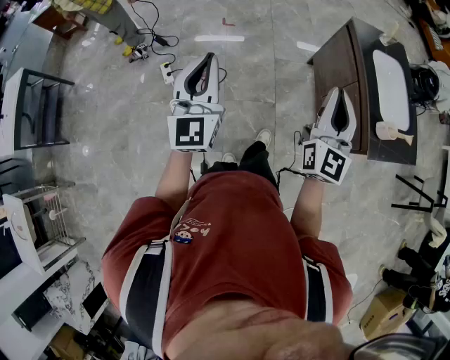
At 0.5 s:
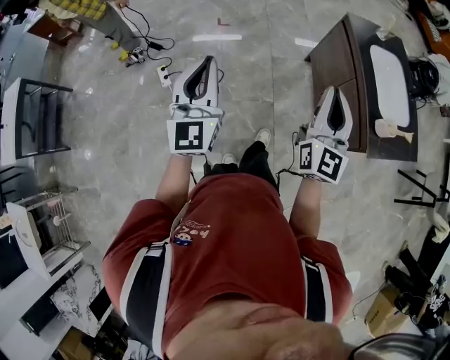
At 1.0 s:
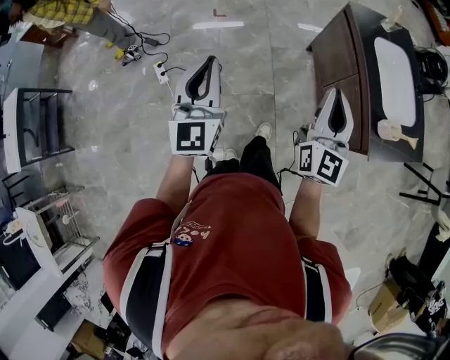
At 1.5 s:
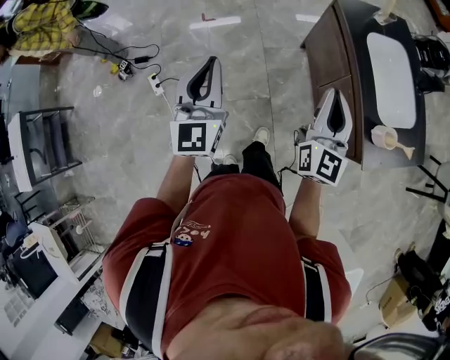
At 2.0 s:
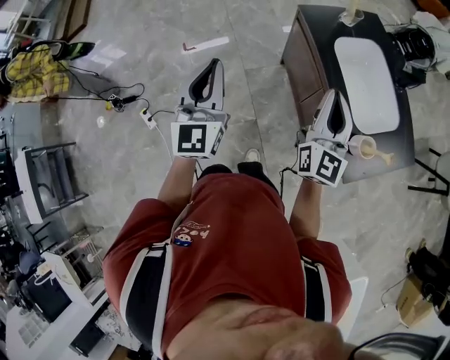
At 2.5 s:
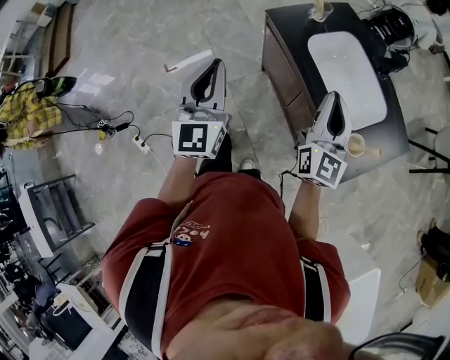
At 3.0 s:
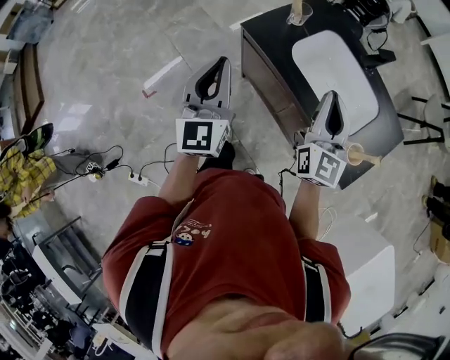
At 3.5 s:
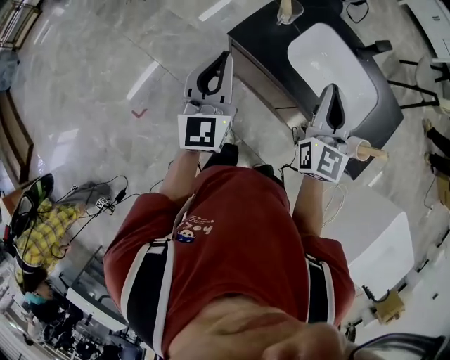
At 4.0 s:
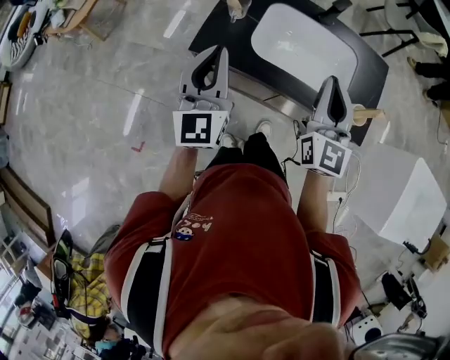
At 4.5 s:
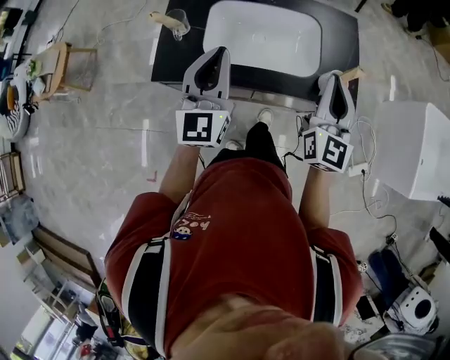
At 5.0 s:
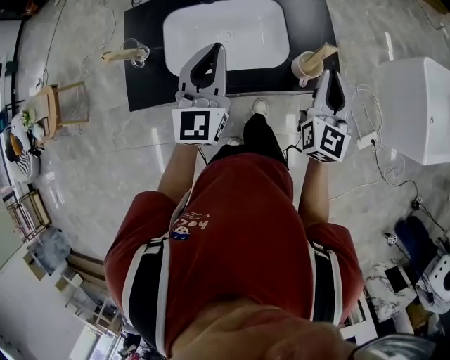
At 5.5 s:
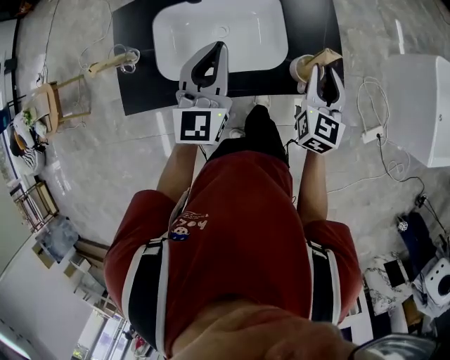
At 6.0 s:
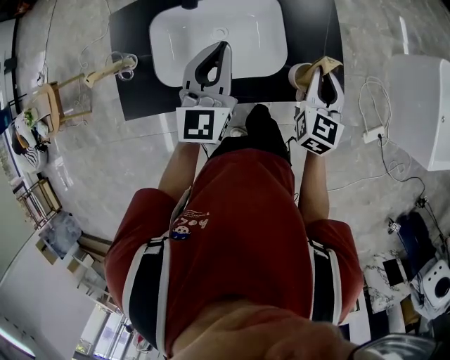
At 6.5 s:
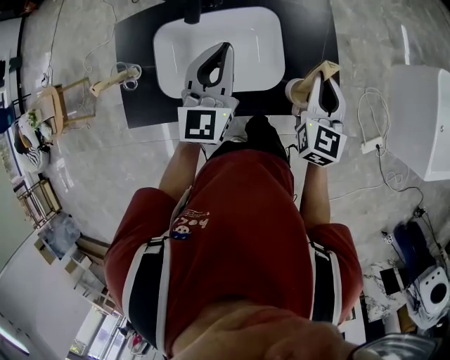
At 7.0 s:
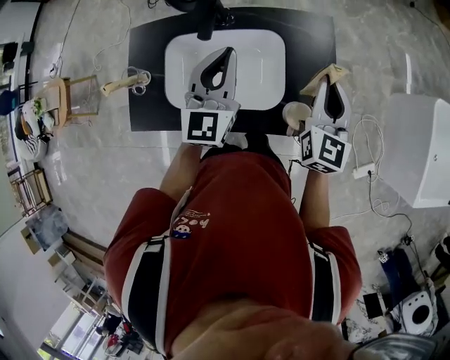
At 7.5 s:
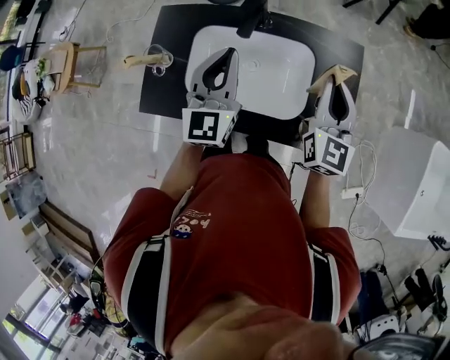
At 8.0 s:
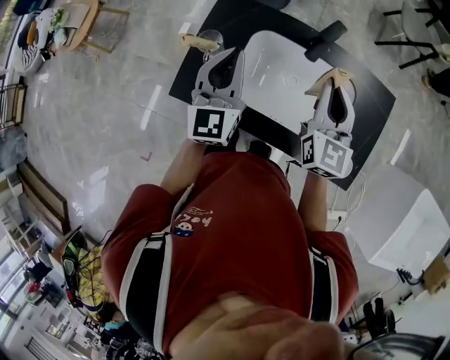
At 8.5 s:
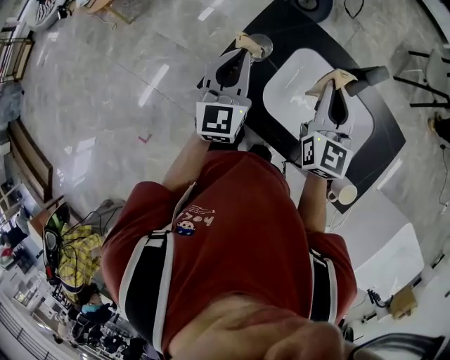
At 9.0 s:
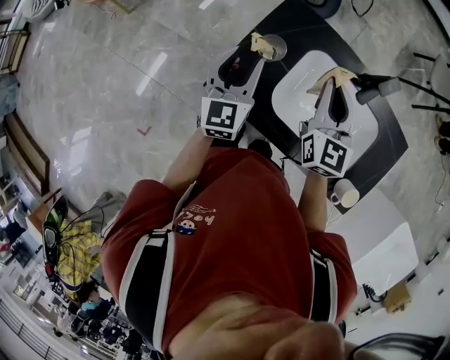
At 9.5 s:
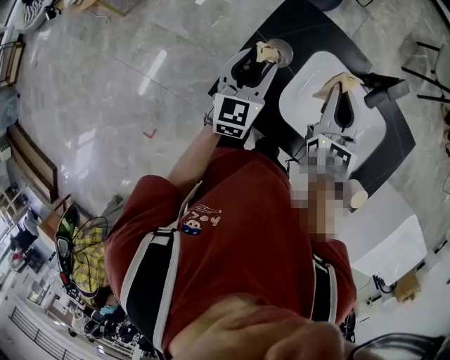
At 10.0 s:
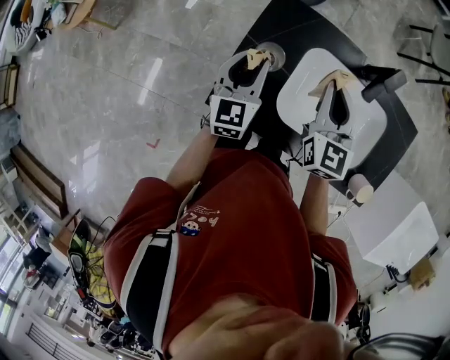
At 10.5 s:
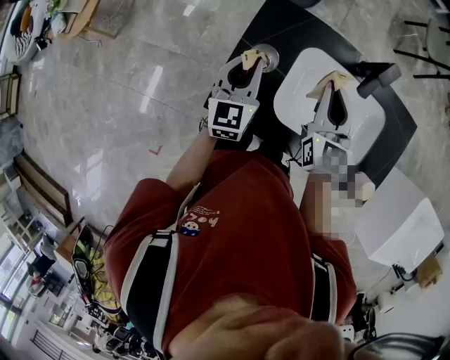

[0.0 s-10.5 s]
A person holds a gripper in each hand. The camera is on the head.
0.0 to 2.0 s: Both grippers move forward and to the right, roughly 35 cm.
2.0 to 4.0 s: The right gripper changes place by some 15 cm, and changes its angle by roughly 50 degrees. The left gripper moves some 35 cm, and swivels approximately 50 degrees.
4.0 to 6.5 s: The left gripper moves some 40 cm, and changes its angle by approximately 30 degrees; the right gripper changes place by some 35 cm, turns by approximately 40 degrees, and opens, then closes again.
6.5 to 8.5 s: The right gripper moves approximately 40 cm, and swivels roughly 40 degrees; the left gripper shifts by about 35 cm, and rotates some 40 degrees.
8.5 to 10.5 s: The left gripper travels downward by about 10 cm, and opens and closes again. The right gripper heads downward, covering about 5 cm.

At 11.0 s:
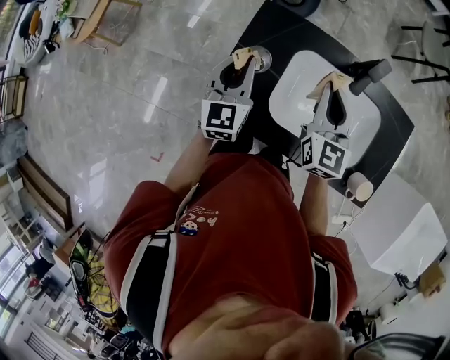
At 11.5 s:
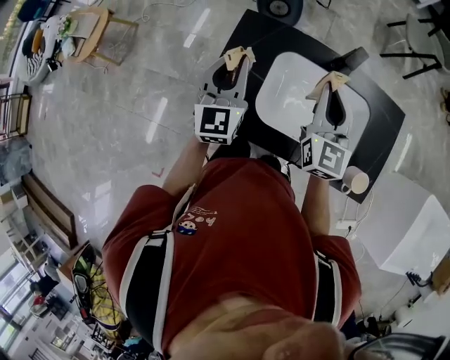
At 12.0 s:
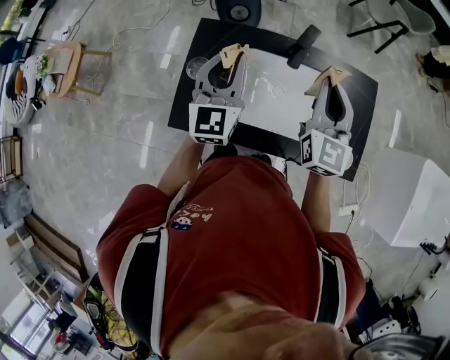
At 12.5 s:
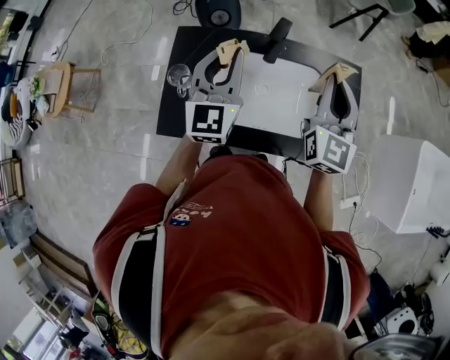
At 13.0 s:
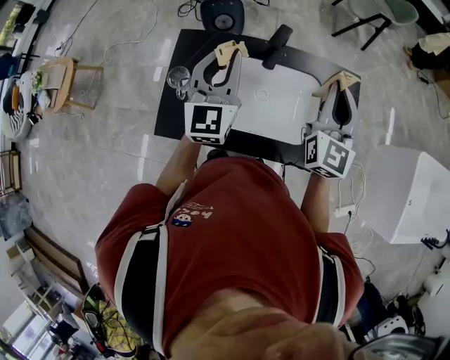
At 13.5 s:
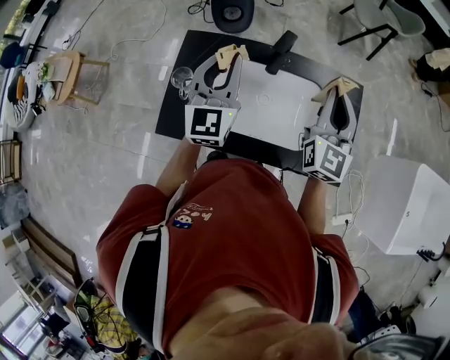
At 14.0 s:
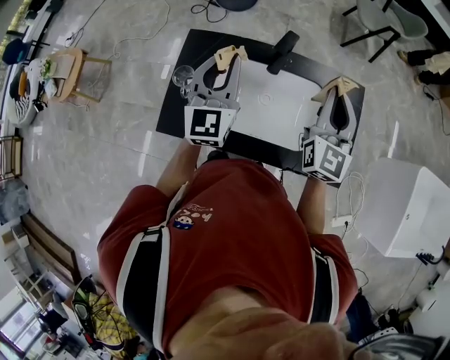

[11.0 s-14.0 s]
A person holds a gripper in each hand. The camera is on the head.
11.0 to 12.5 s: Both grippers move to the right and upward, roughly 25 cm. The left gripper swivels about 20 degrees. Meanwhile the right gripper turns by some 20 degrees.
12.5 to 14.0 s: There are only small adjustments of the grippers.

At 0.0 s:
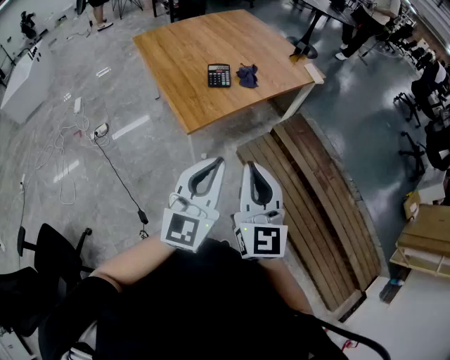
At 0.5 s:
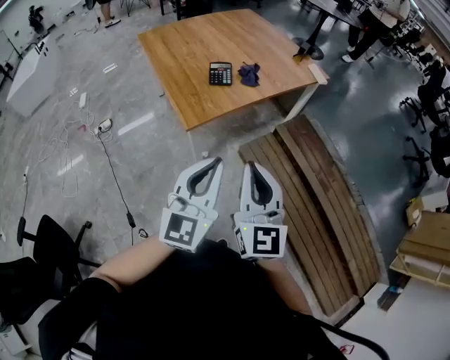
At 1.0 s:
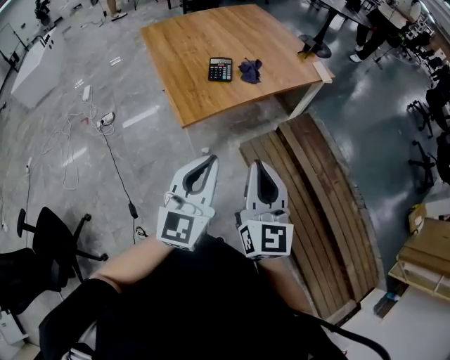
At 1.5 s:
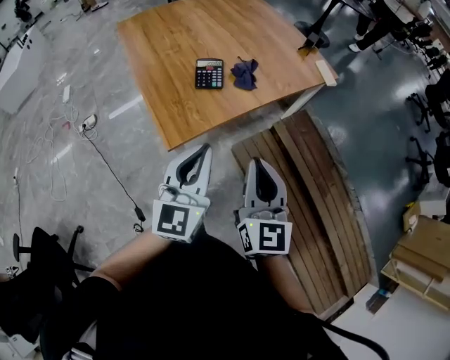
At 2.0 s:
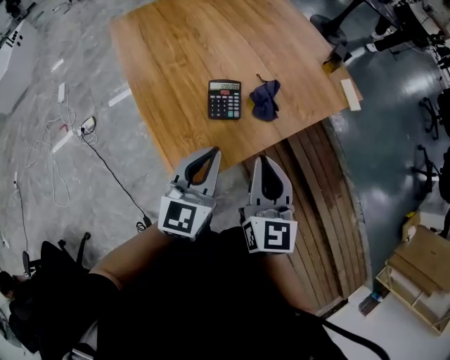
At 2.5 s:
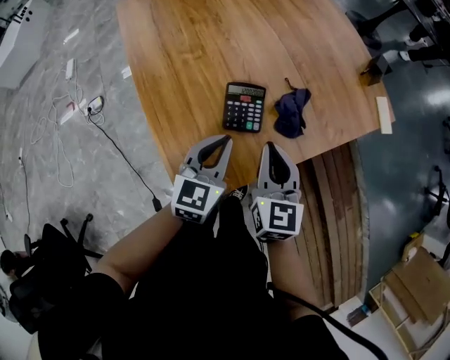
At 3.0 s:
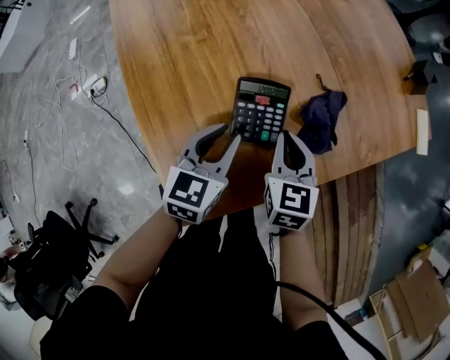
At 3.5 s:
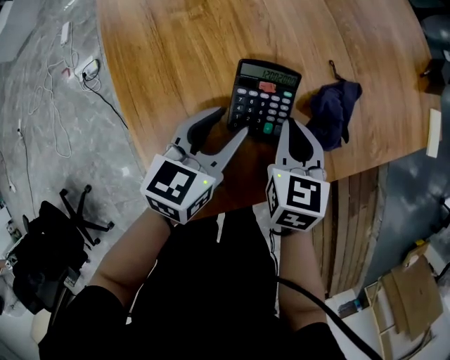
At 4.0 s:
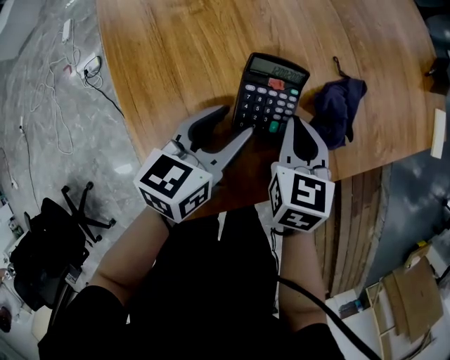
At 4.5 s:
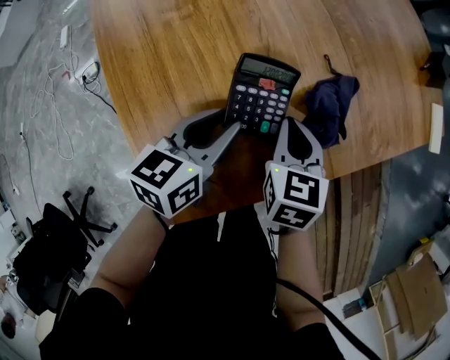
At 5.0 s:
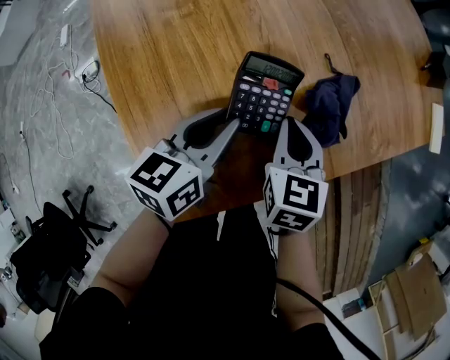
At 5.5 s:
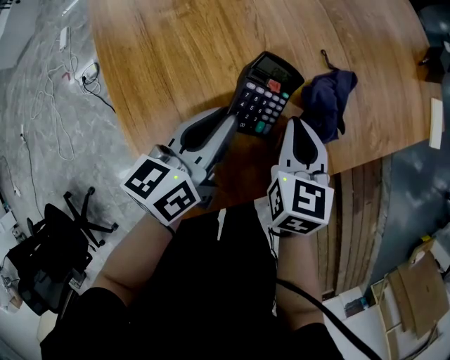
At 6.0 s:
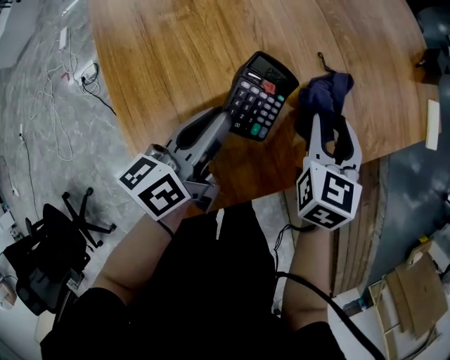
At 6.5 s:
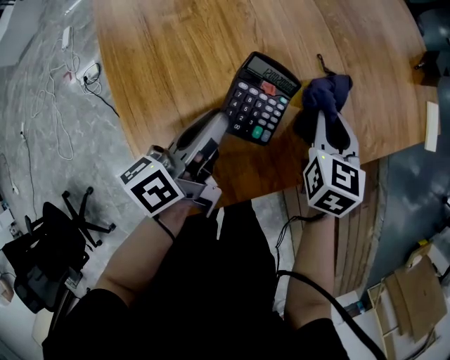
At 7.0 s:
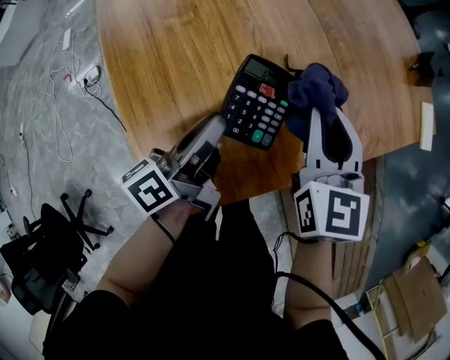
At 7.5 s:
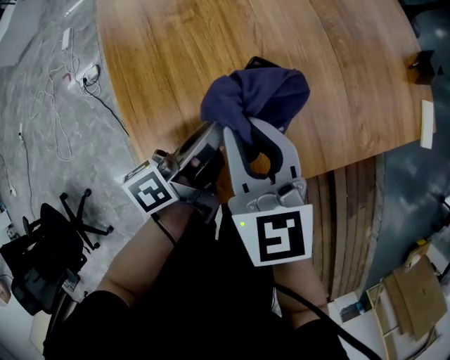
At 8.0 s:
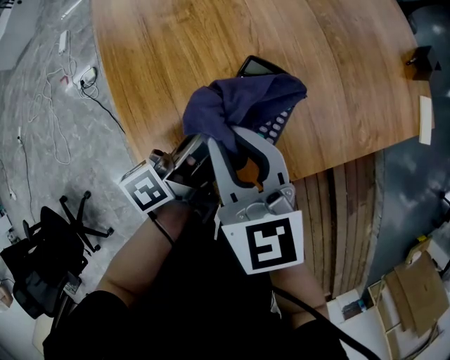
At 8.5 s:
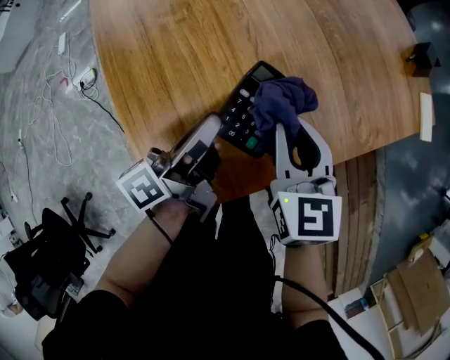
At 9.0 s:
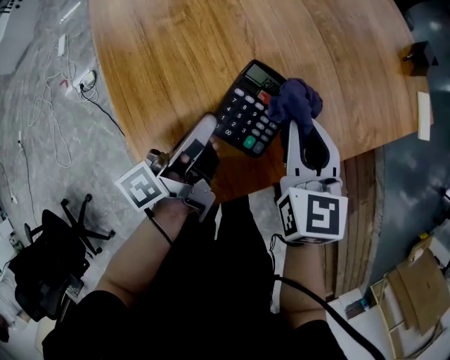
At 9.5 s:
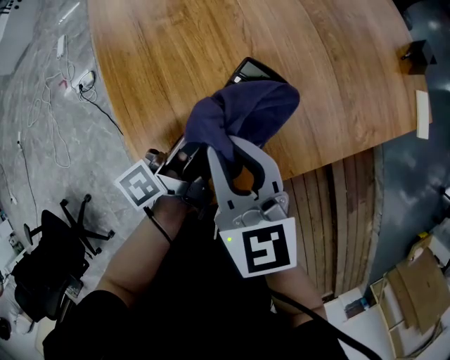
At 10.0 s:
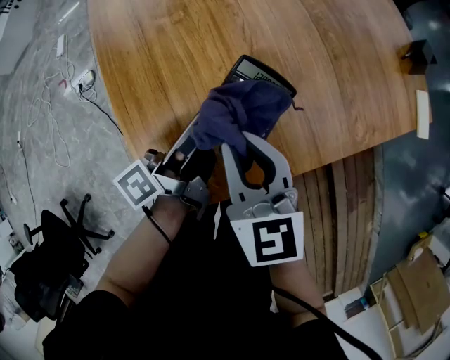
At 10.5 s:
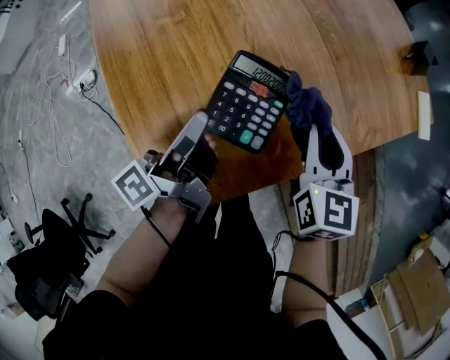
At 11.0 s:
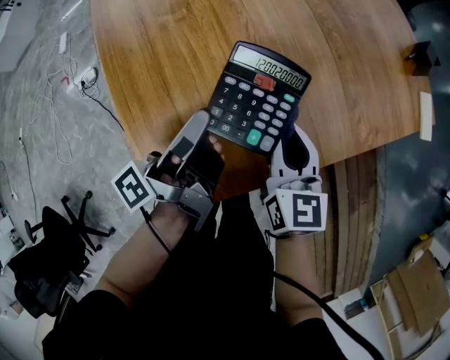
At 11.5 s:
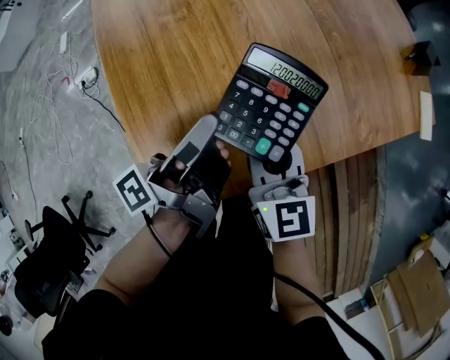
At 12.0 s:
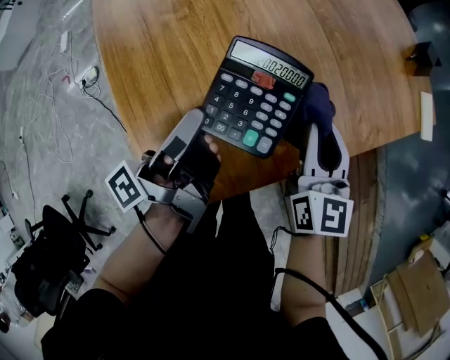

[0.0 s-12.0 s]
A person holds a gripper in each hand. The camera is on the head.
0.0 to 2.0 s: The two grippers travel together, forward, roughly 40 cm.
2.0 to 4.0 s: Both grippers travel together downward and forward, about 35 cm. The left gripper rotates some 30 degrees, and opens; the right gripper tilts its fingers approximately 30 degrees downward.
4.0 to 6.0 s: The left gripper changes its angle by about 30 degrees, and closes its fingers. Meanwhile the right gripper travels to the right by approximately 10 cm, and opens its fingers.
6.0 to 8.0 s: The left gripper changes its angle by roughly 30 degrees. Meanwhile the right gripper moves to the left, upward and backward, roughly 25 cm, and rotates approximately 40 degrees.
8.0 to 10.0 s: The right gripper goes to the right and returns, approximately 15 cm each way.
10.0 to 12.0 s: The right gripper moves left and right over some 15 cm, changing direction 2 times, and changes its angle by some 20 degrees.

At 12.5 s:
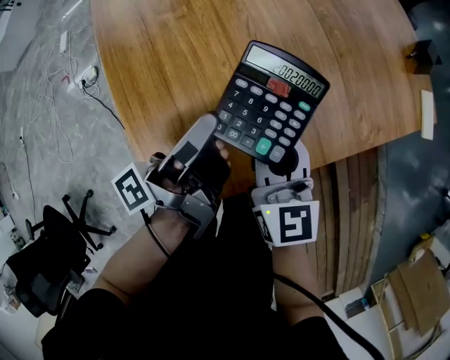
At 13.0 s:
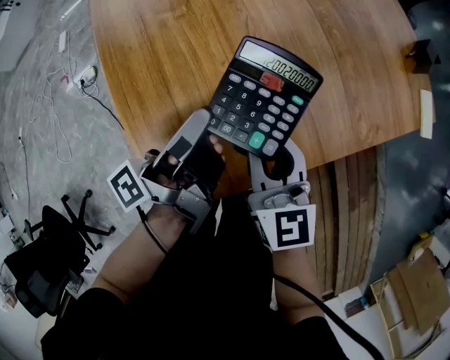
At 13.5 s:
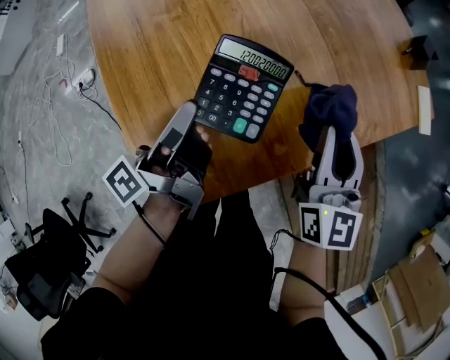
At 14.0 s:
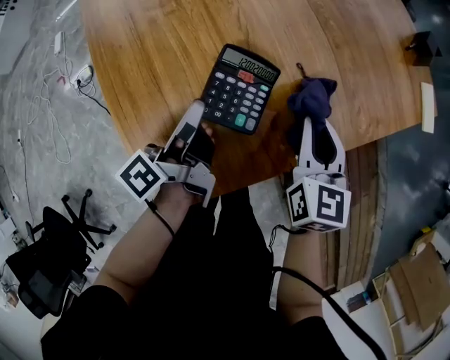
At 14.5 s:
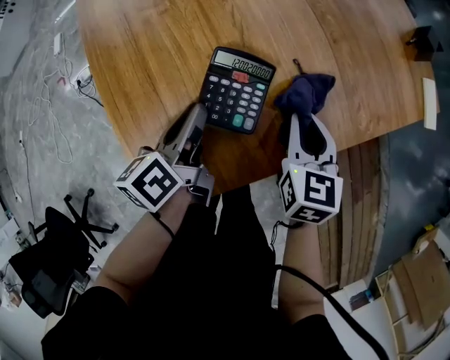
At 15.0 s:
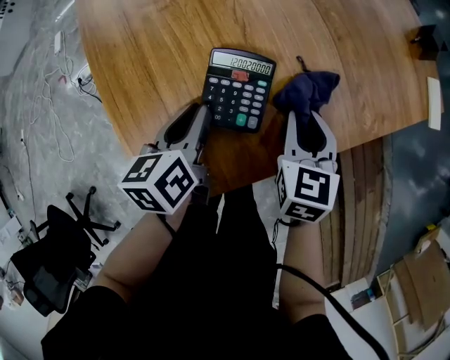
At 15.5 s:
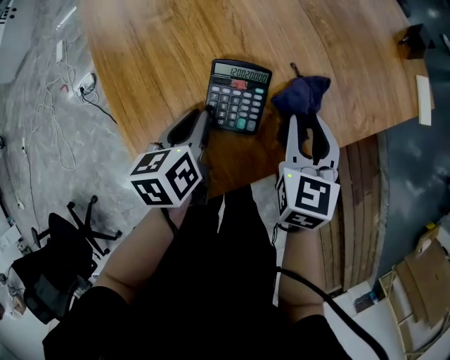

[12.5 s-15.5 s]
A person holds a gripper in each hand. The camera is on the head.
12.5 to 14.0 s: The left gripper is displaced downward by some 5 cm, and swivels about 20 degrees. The right gripper is displaced to the right by roughly 10 cm, and turns by some 20 degrees.
14.0 to 15.5 s: The left gripper points its fingers some 30 degrees further downward.
